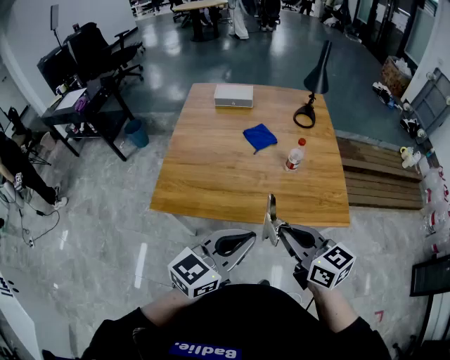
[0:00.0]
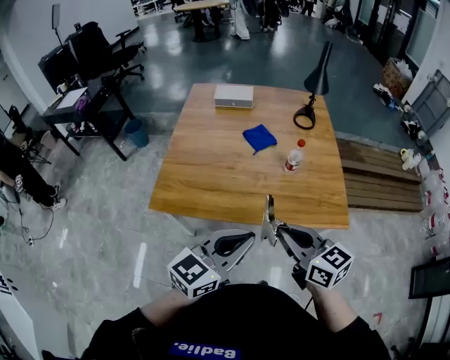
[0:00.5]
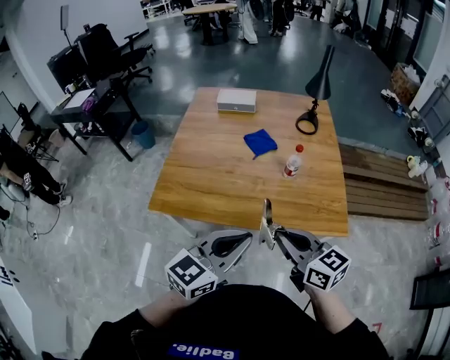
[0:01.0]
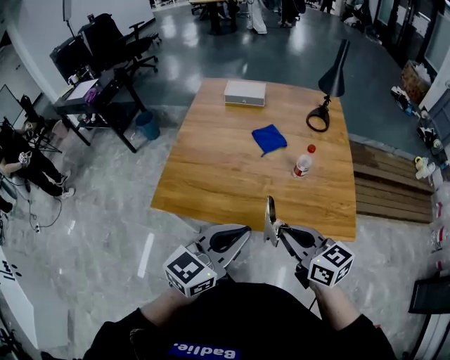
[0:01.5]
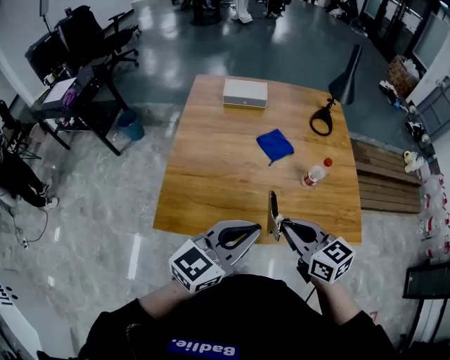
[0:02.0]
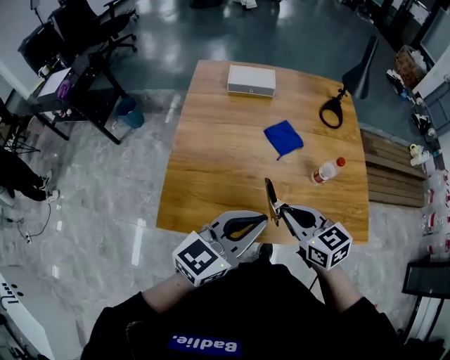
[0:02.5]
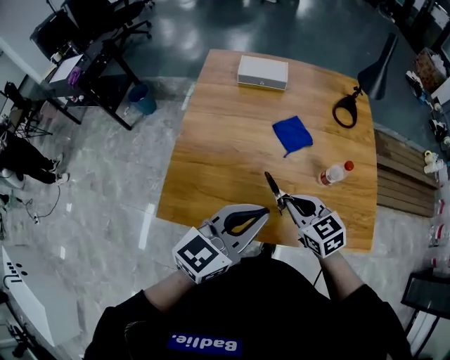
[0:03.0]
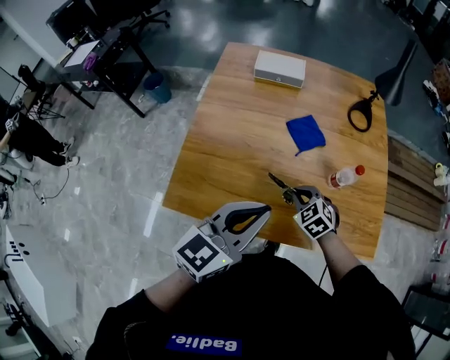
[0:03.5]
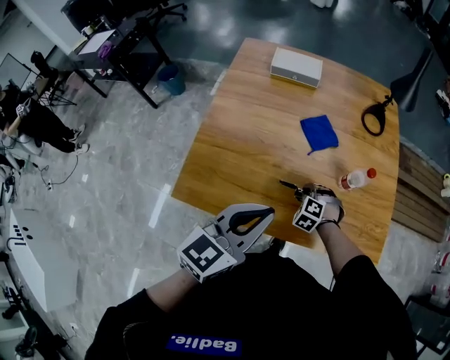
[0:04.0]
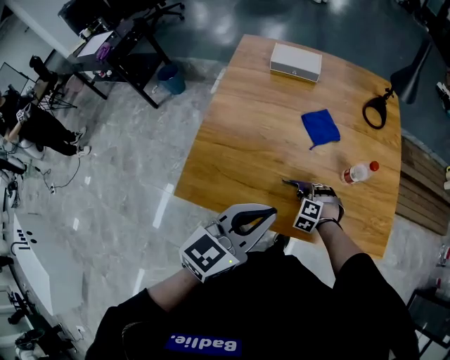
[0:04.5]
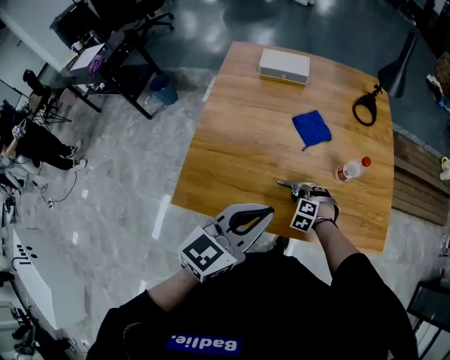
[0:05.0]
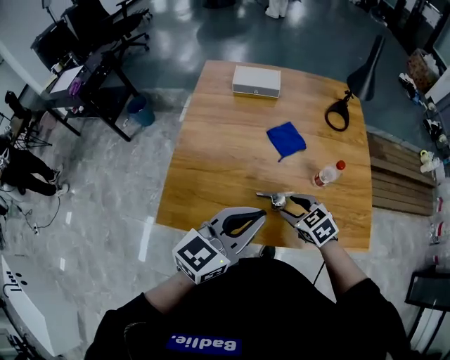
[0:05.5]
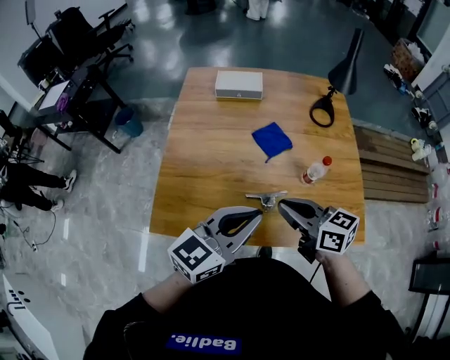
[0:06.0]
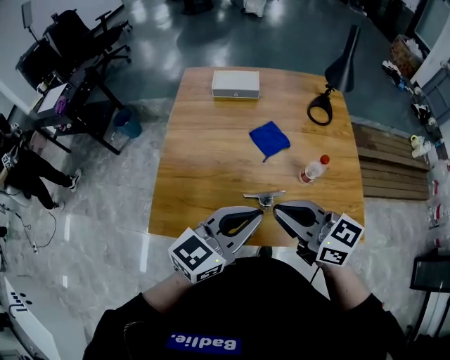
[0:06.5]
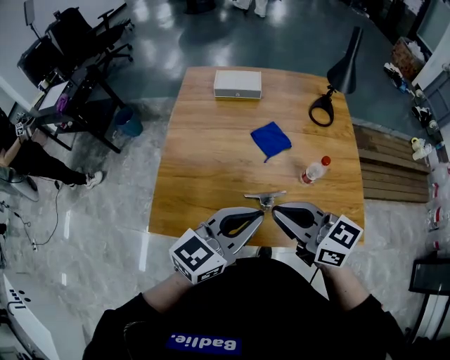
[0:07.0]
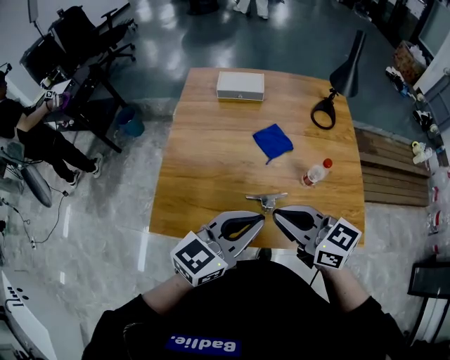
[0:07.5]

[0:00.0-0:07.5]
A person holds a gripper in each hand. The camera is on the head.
0:00.0 to 0:02.0: Both grippers move forward and to the left, about 15 cm.
0:02.0 to 0:04.0: The left gripper is displaced forward by about 5 cm; the right gripper is displaced downward and forward by approximately 30 cm, and angles its fingers downward, by some 40 degrees.
0:04.0 to 0:05.5: The right gripper heads upward and backward, covering about 15 cm, twists about 40 degrees clockwise, seen from behind, and opens up.
0:05.5 to 0:07.5: The right gripper moves upward, some 20 cm, tips its fingers upward by roughly 40 degrees, and closes.

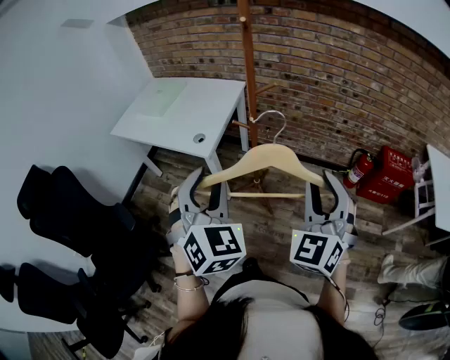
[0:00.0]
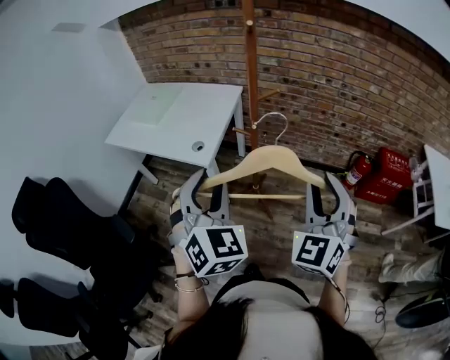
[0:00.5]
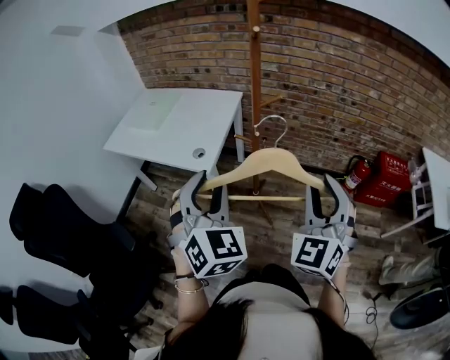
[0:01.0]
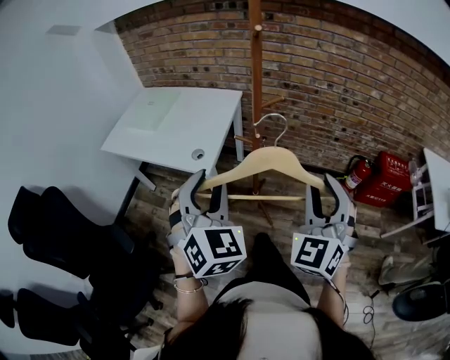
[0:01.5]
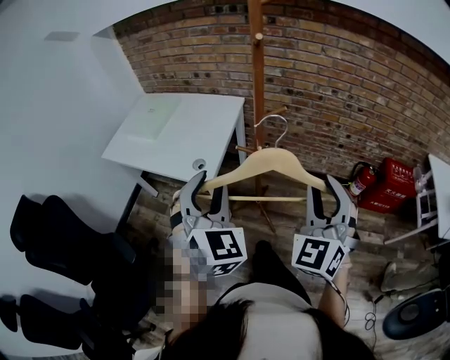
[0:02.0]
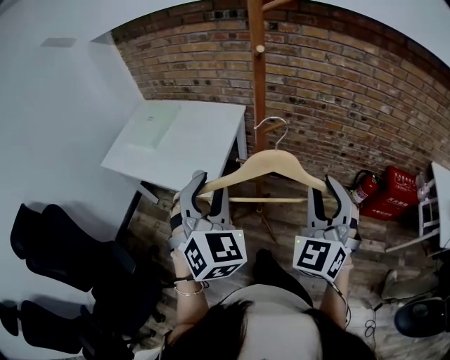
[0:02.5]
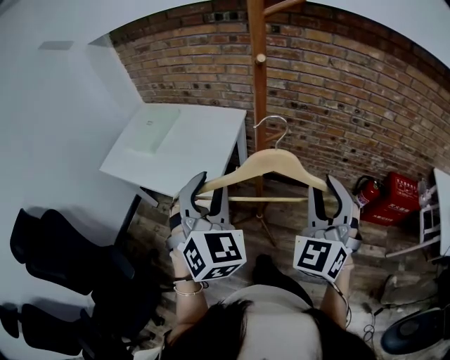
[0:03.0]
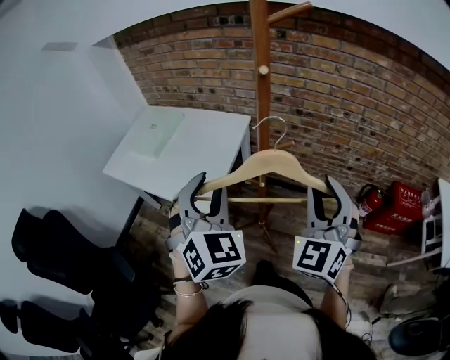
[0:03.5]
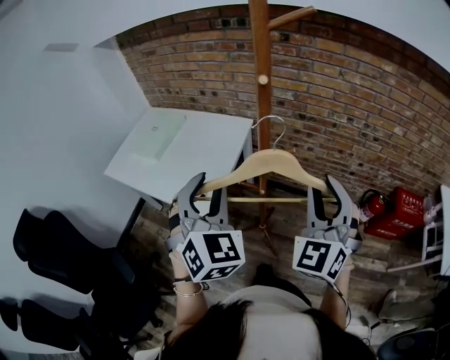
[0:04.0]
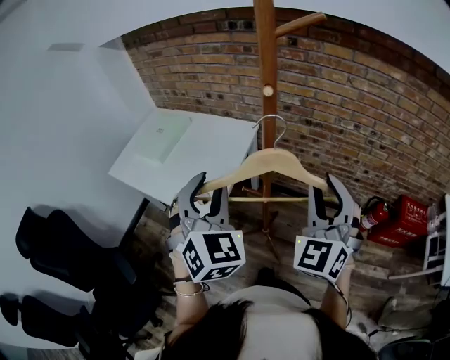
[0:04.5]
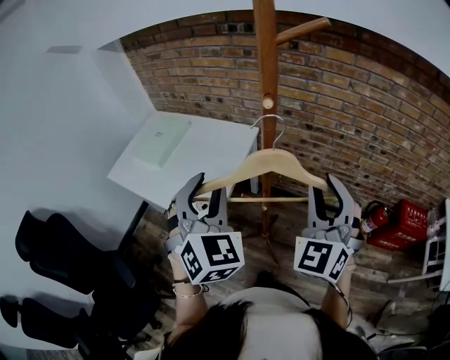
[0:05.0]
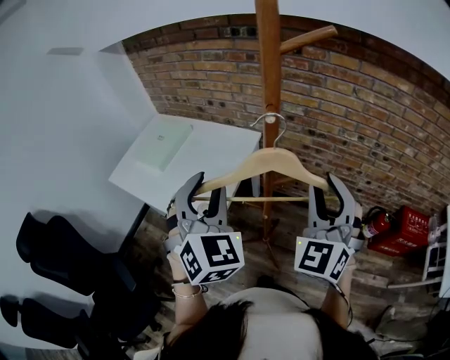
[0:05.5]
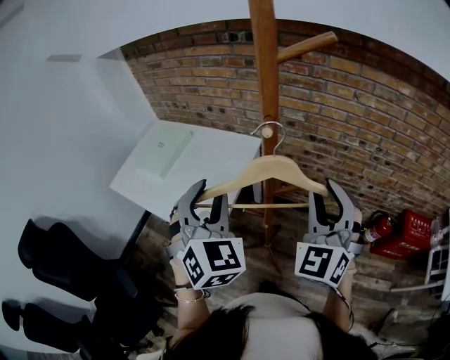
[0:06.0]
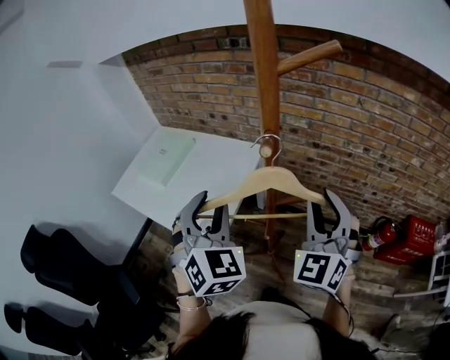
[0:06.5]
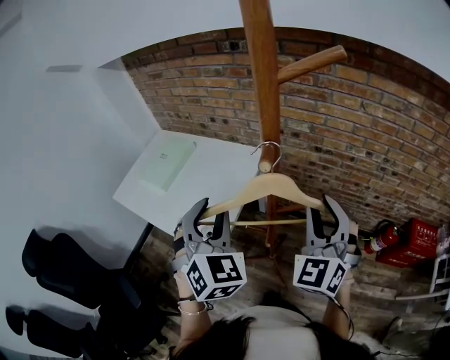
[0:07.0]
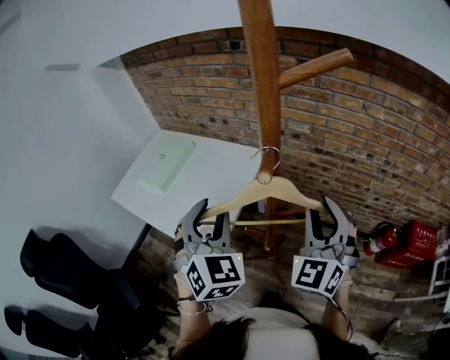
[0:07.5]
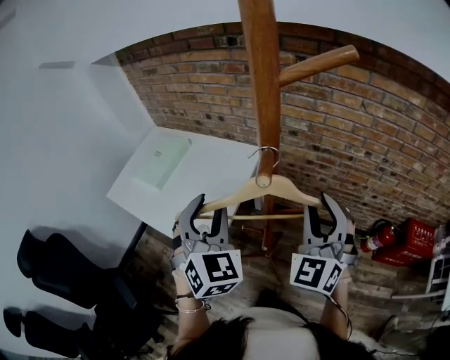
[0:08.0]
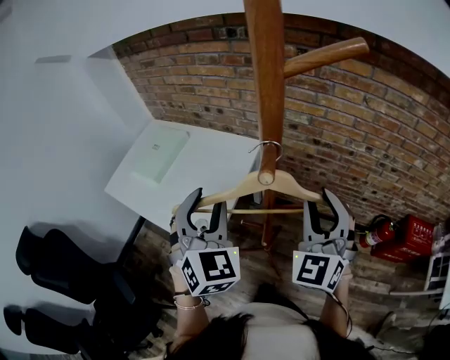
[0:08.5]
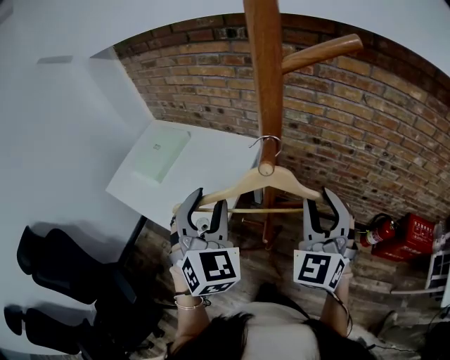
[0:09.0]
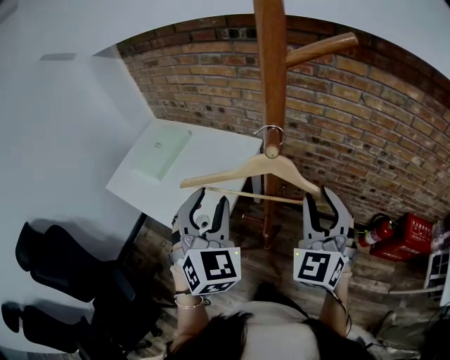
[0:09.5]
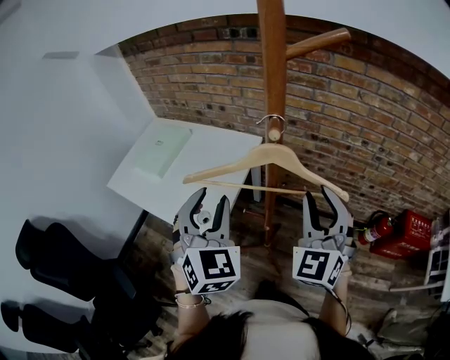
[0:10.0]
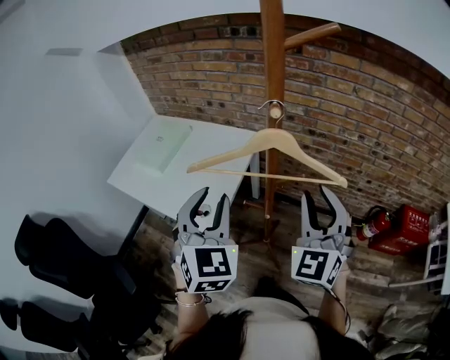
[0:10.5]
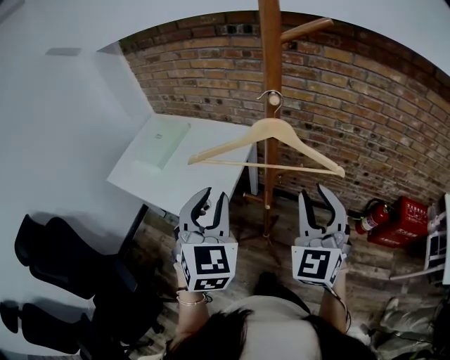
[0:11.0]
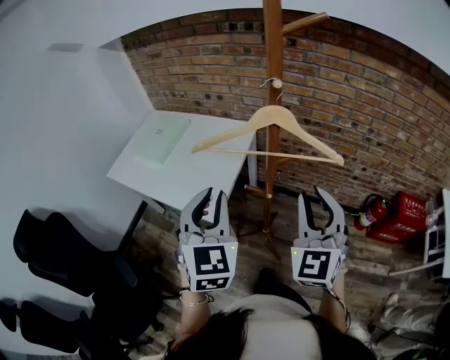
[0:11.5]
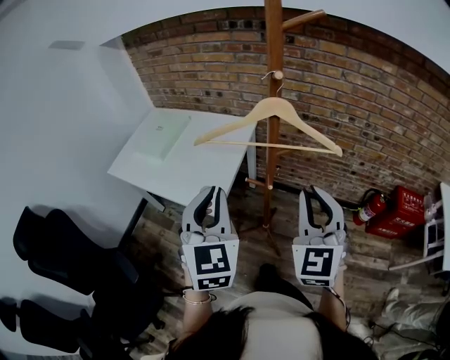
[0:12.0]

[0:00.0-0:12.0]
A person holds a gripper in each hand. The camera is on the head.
0:00.0 to 0:02.0: The grippers both shift forward by approximately 10 cm.
0:02.0 to 0:04.0: The grippers both shift forward by roughly 15 cm.
0:04.0 to 0:06.0: The two grippers go roughly 10 cm forward.
0:06.0 to 0:08.0: The left gripper shifts by approximately 5 cm, while the right gripper is displaced forward by approximately 5 cm.
0:08.0 to 0:10.0: There are only small adjustments of the grippers.
0:10.0 to 0:12.0: Both grippers travel together backward, approximately 15 cm. The left gripper closes its fingers.

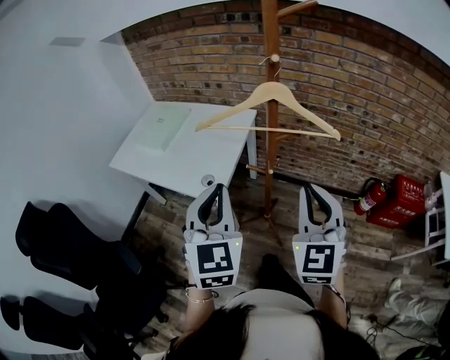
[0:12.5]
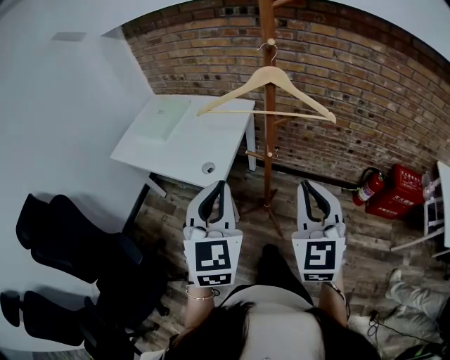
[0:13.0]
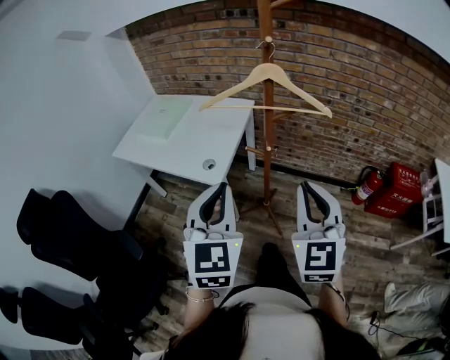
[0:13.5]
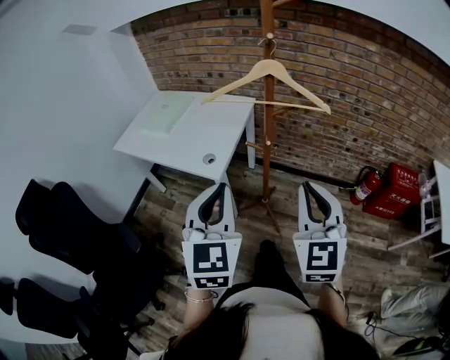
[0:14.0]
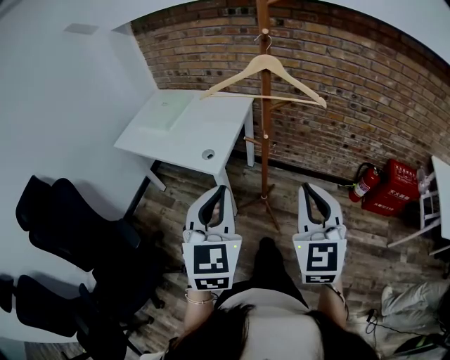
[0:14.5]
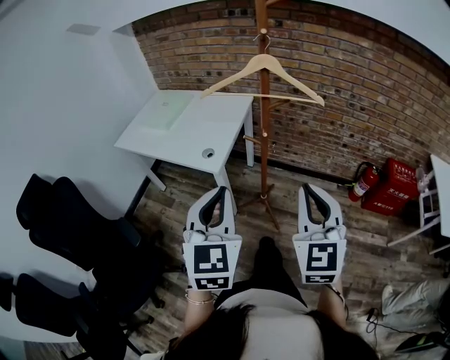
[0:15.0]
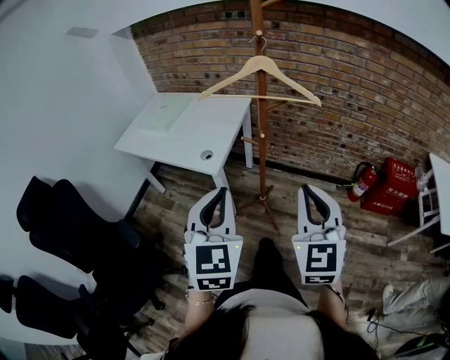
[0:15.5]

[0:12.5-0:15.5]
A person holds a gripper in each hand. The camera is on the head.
0:12.5 to 0:14.0: Both grippers travel together backward, some 10 cm.
0:14.0 to 0:15.5: The right gripper shifts about 5 cm backward; the left gripper ends up roughly 5 cm from where it was.

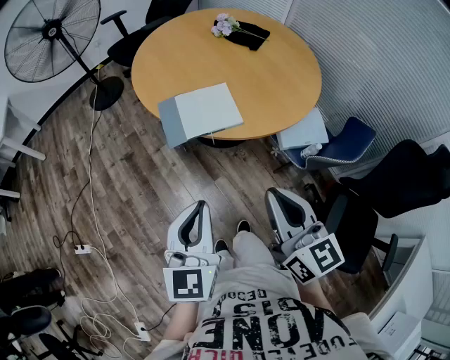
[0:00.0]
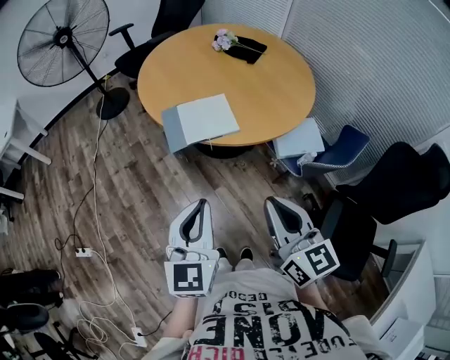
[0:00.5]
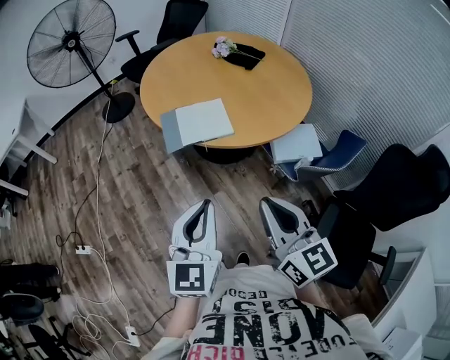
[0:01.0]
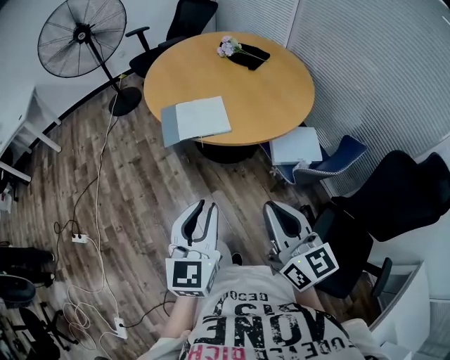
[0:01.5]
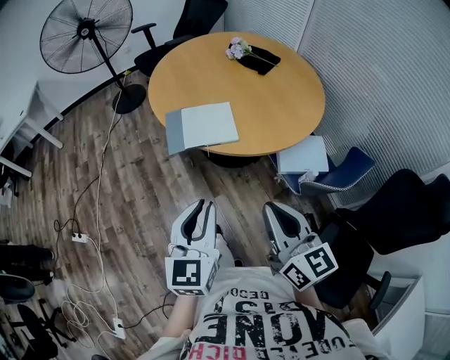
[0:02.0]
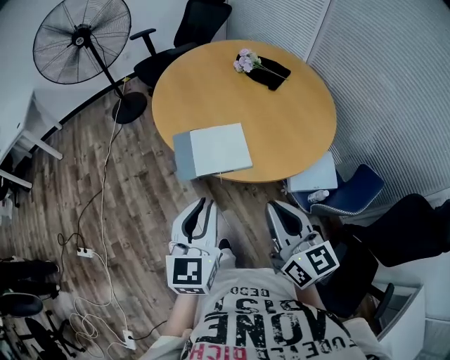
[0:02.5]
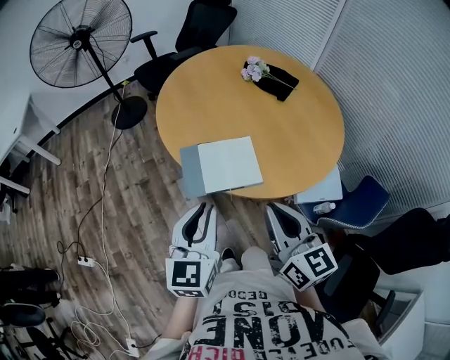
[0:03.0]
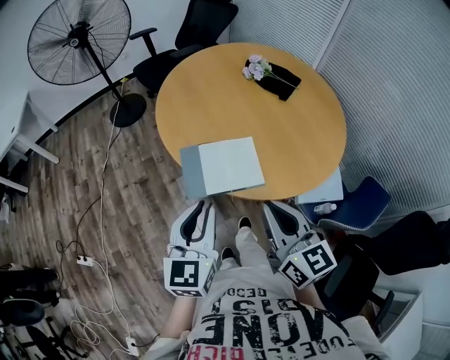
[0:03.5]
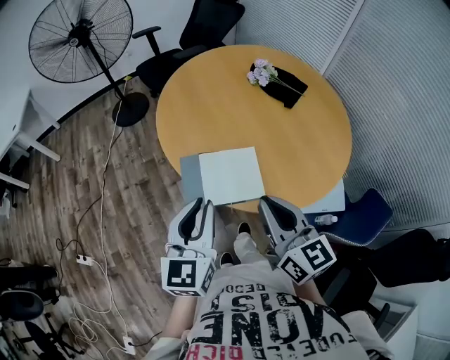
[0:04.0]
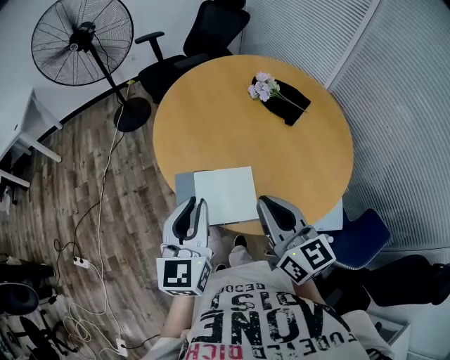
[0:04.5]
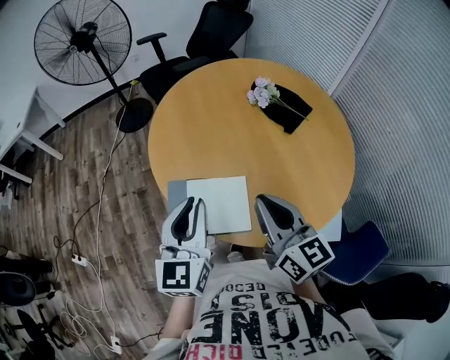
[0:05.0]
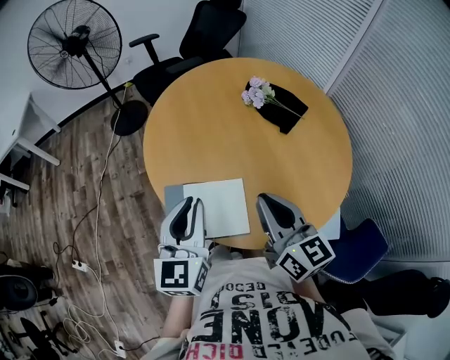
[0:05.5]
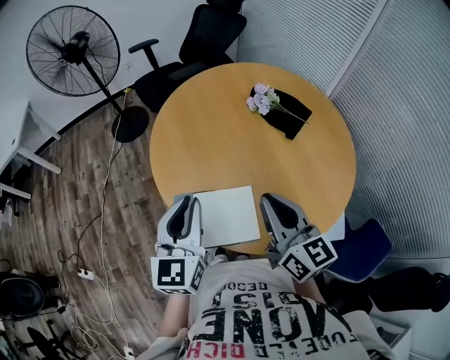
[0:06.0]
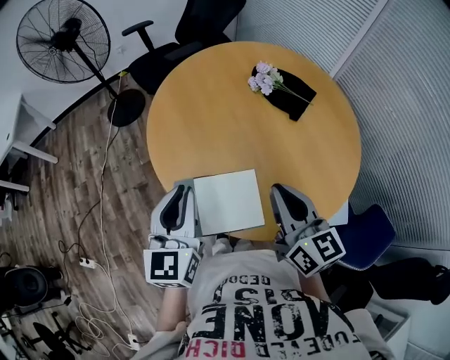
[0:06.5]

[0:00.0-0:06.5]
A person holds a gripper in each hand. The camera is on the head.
0:00.0 to 0:02.0: The two grippers go roughly 10 cm to the right. The right gripper travels backward and back again, some 10 cm each way.
0:02.0 to 0:04.5: Both grippers move forward, some 30 cm.
0:04.5 to 0:06.5: Both grippers travel together forward, some 10 cm.
